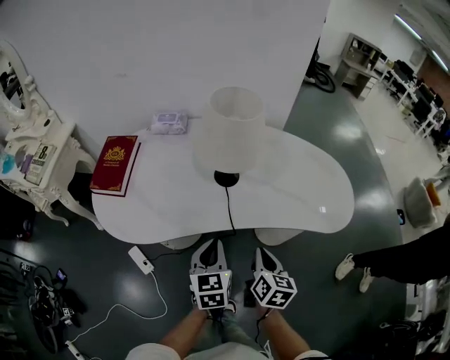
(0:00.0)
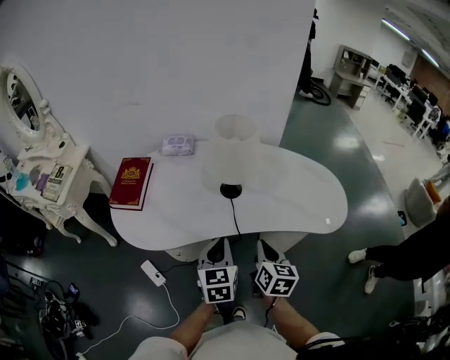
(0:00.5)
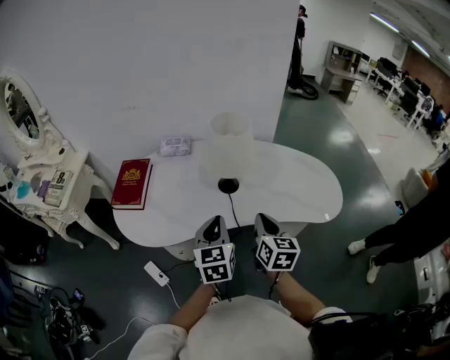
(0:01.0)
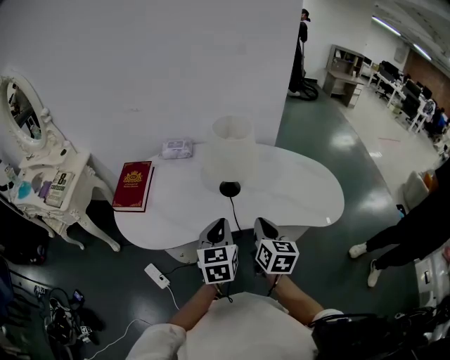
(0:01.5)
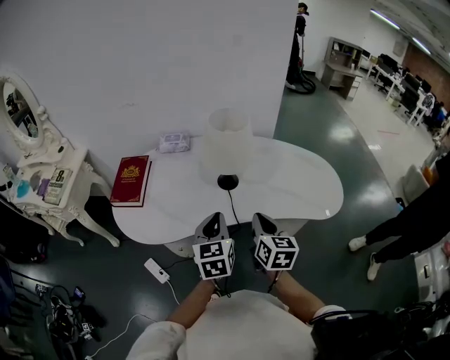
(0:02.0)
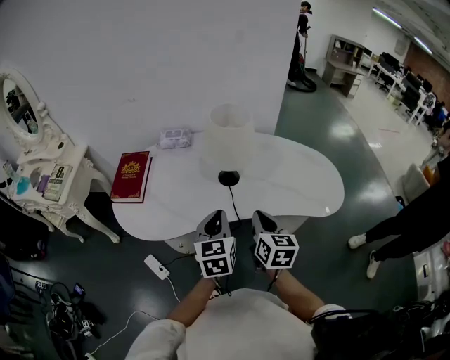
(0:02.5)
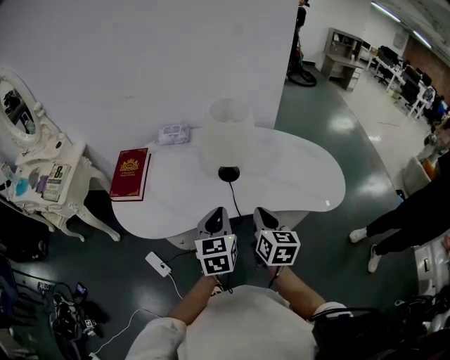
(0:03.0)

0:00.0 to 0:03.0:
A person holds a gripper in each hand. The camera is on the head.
0:00.0 to 0:01.5: Both grippers travel together upward, approximately 15 cm.
0:01.5 to 0:03.0: The two grippers keep their place.

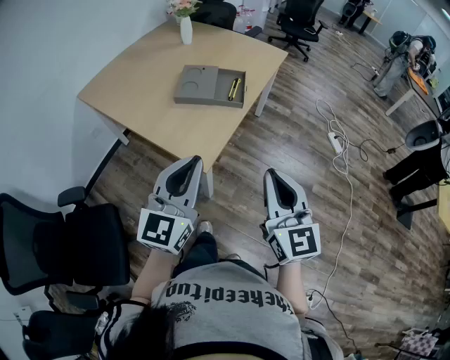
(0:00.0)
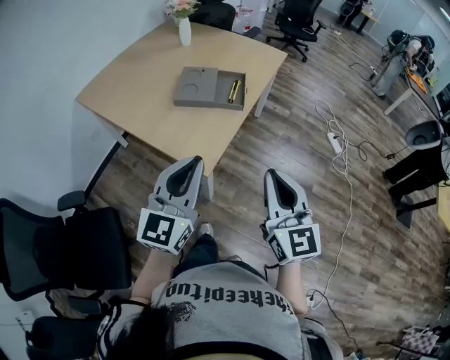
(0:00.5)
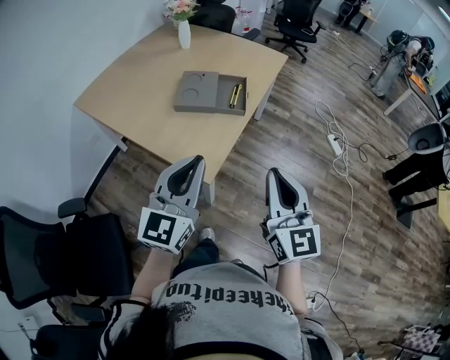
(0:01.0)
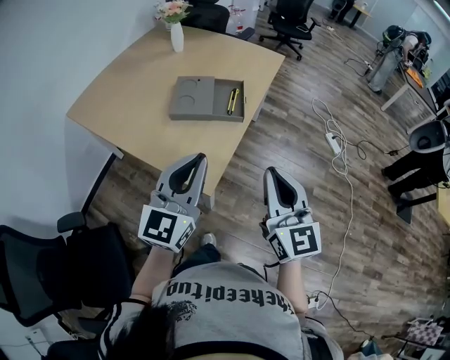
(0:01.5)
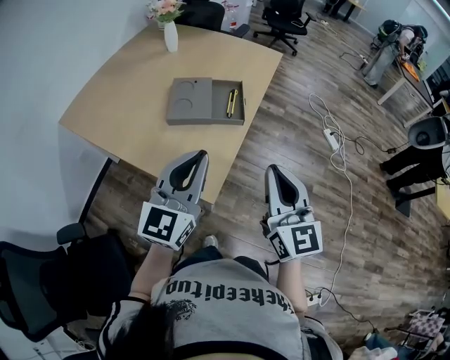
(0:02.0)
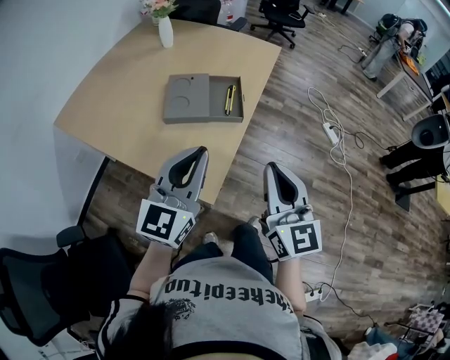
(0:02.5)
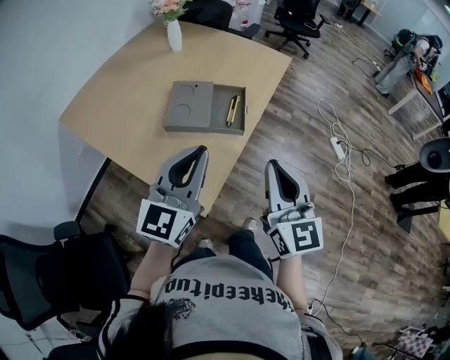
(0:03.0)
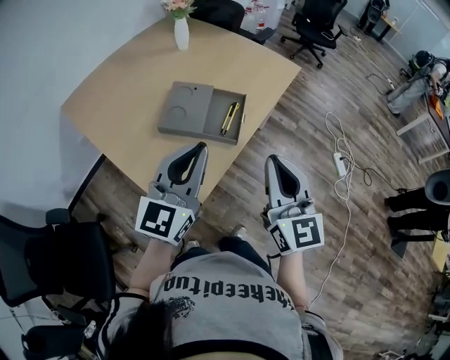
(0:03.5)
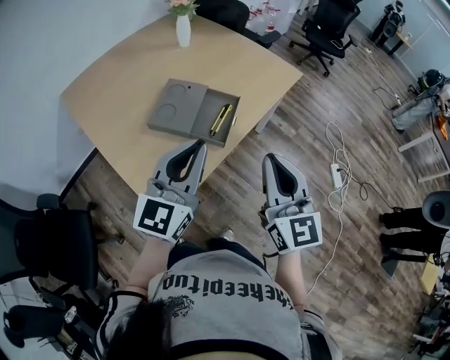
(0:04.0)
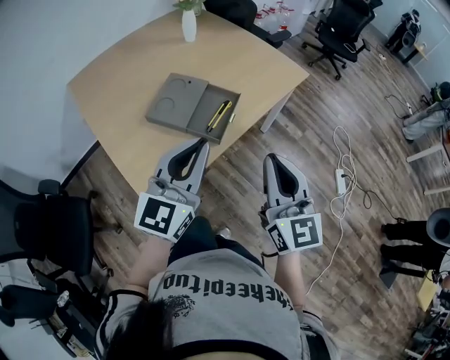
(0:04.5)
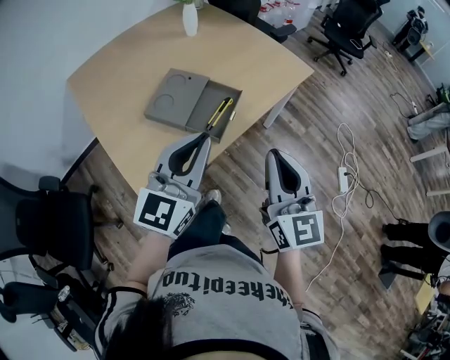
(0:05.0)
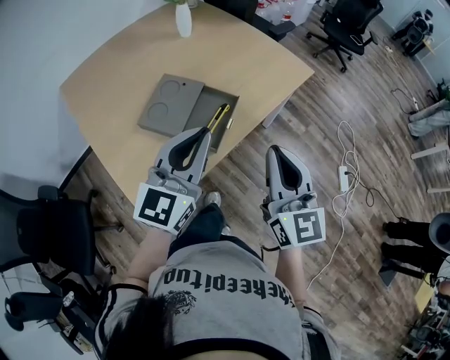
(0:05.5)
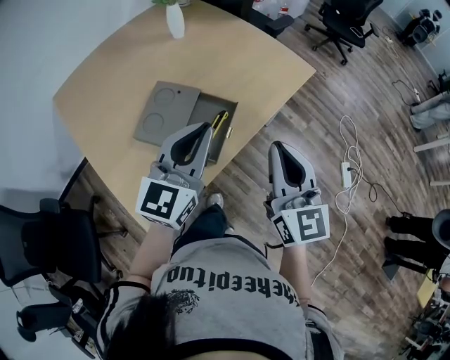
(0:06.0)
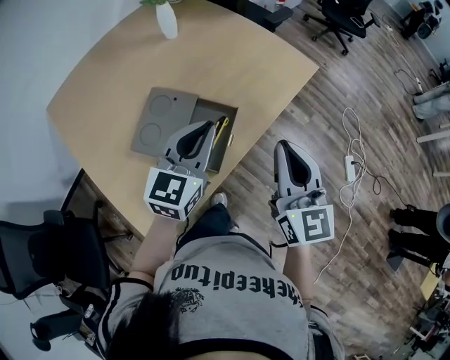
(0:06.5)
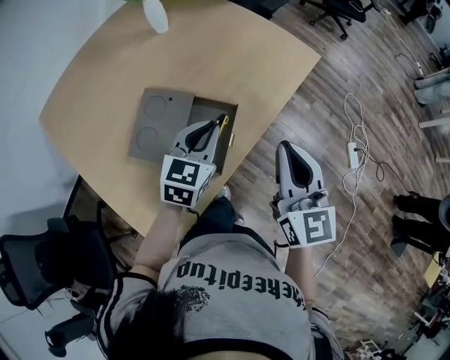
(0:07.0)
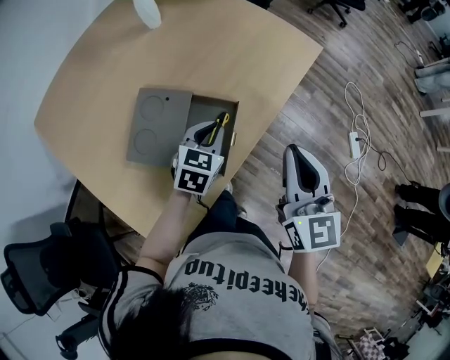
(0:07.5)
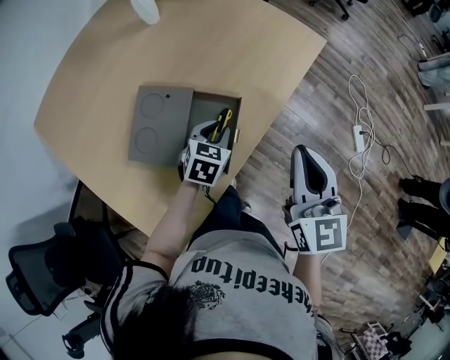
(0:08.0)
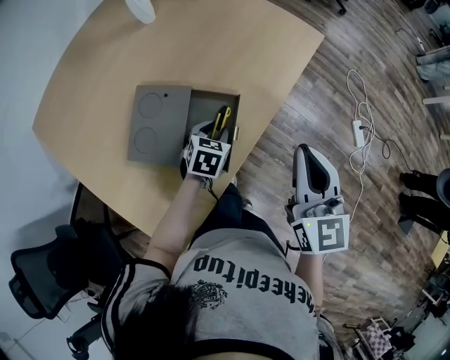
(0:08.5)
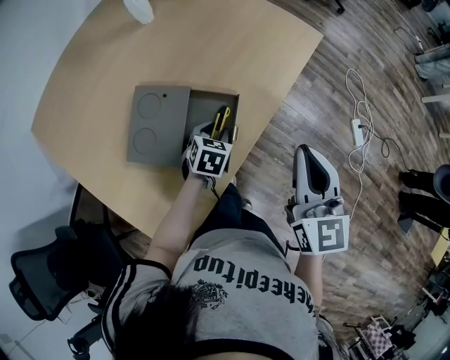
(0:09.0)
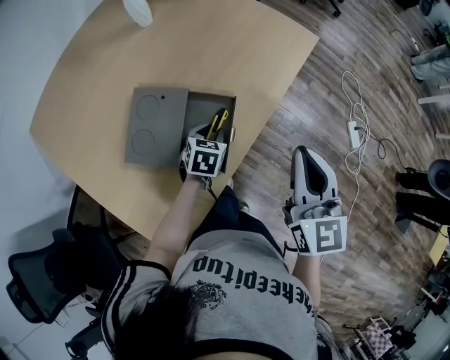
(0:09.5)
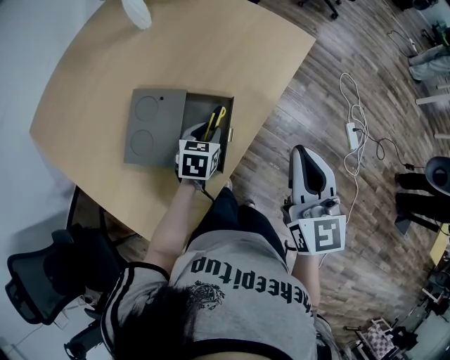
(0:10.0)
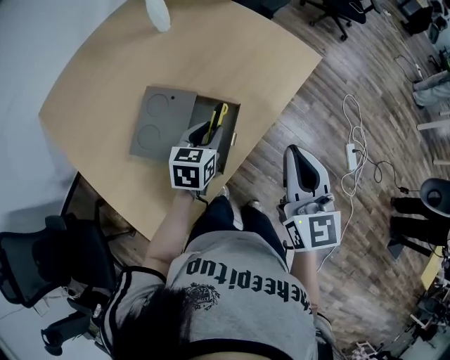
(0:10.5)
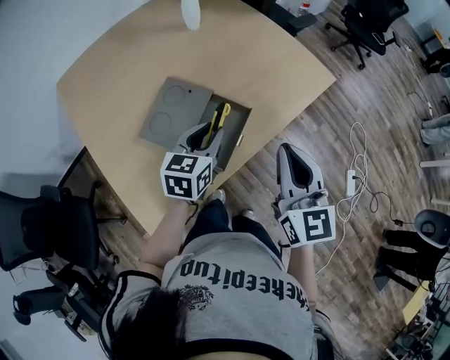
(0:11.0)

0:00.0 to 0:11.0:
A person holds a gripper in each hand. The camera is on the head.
0:00.0 to 0:02.0: The two grippers go about 15 cm forward.
0:02.0 to 0:03.5: The grippers both shift forward and to the right by about 15 cm.
0:03.5 to 0:05.5: Both grippers travel together forward and to the right, some 15 cm.
0:05.5 to 0:07.5: The left gripper heads downward and forward, covering roughly 30 cm, and angles its fingers downward, by approximately 40 degrees. The right gripper shifts roughly 15 cm forward and downward.
0:07.5 to 0:09.0: The left gripper shifts about 10 cm downward, and opens.
0:09.0 to 0:11.0: The left gripper shifts some 20 cm upward, and changes its angle by roughly 40 degrees.

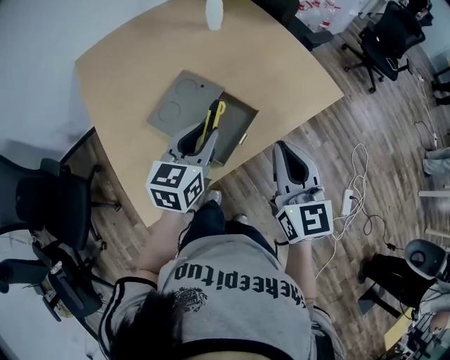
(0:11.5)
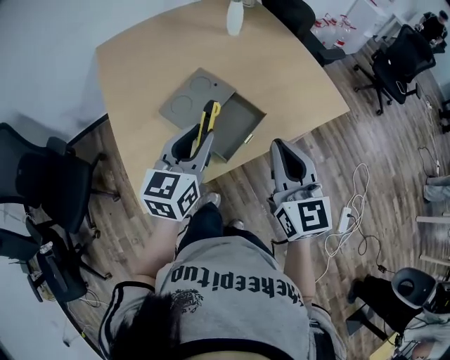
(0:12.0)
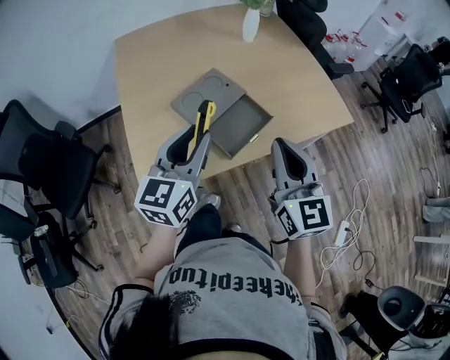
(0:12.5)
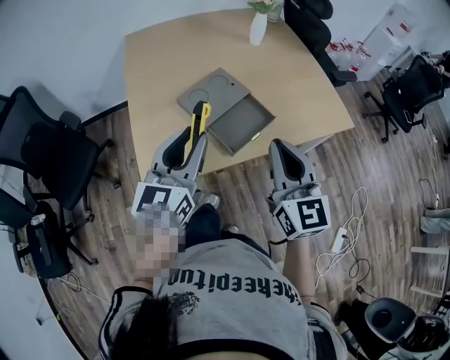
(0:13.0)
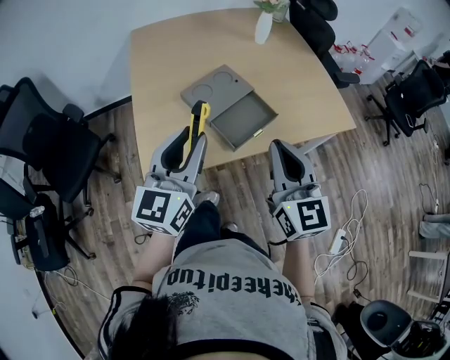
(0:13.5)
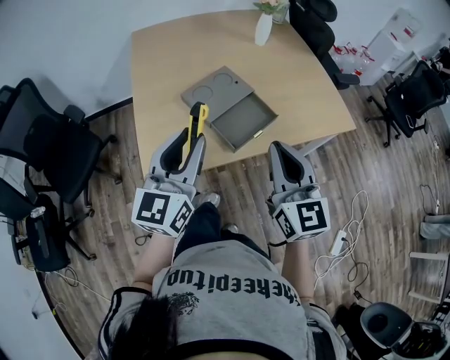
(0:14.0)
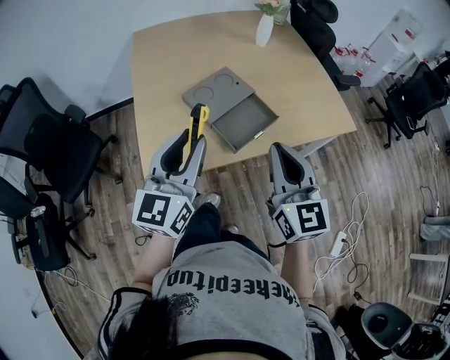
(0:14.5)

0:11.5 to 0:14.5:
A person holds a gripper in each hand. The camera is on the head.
0:11.5 to 0:13.0: The left gripper moves backward, upward and to the left, some 15 cm, and turns by about 30 degrees, while the right gripper shifts some 5 cm backward.
0:13.0 to 0:14.5: The grippers make only small movements.

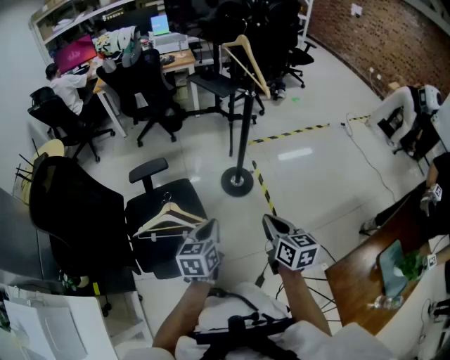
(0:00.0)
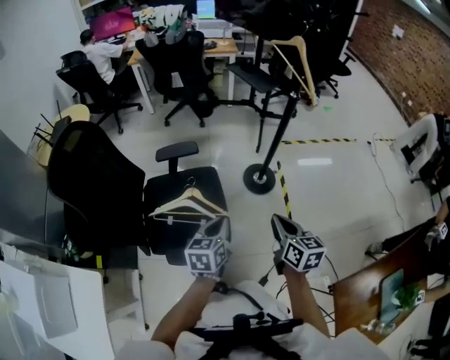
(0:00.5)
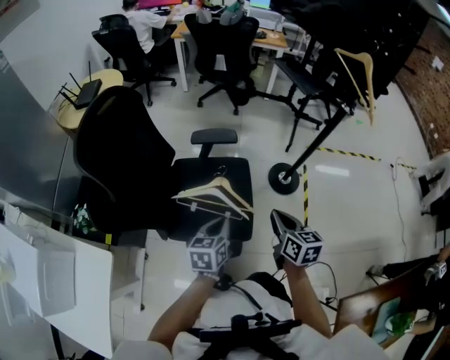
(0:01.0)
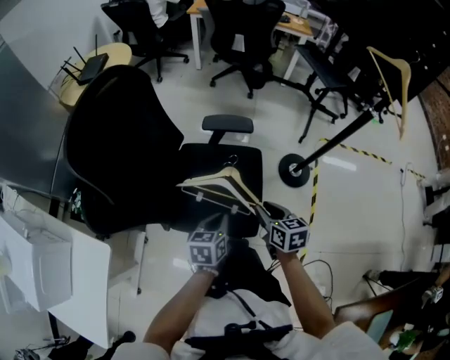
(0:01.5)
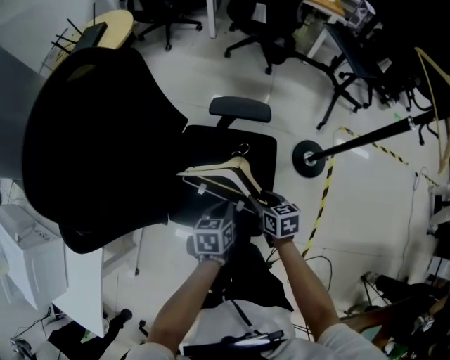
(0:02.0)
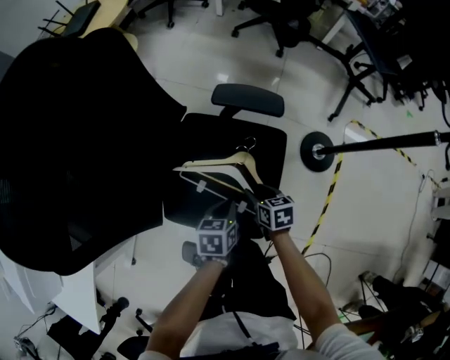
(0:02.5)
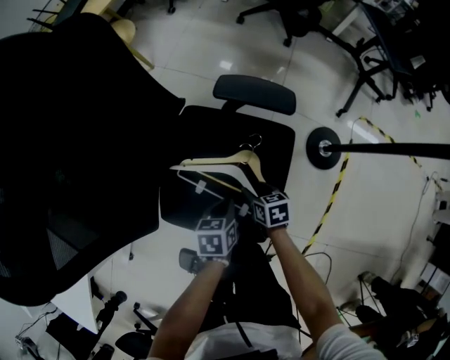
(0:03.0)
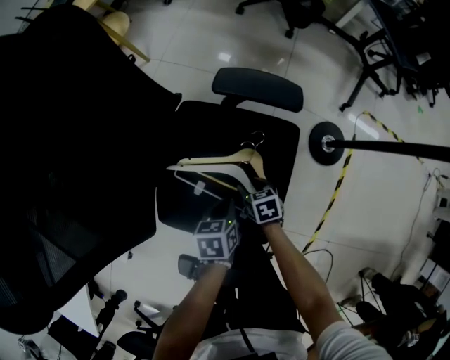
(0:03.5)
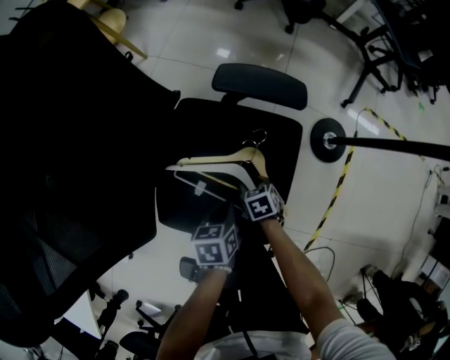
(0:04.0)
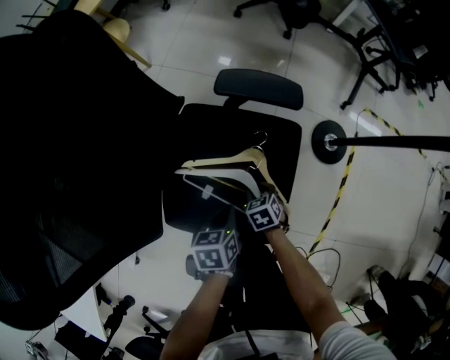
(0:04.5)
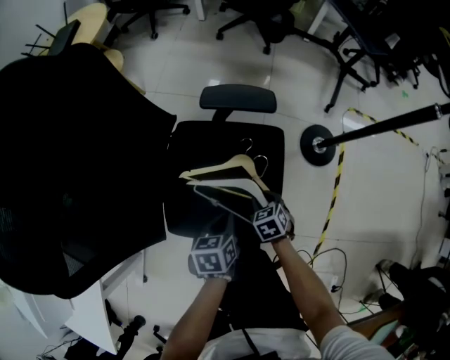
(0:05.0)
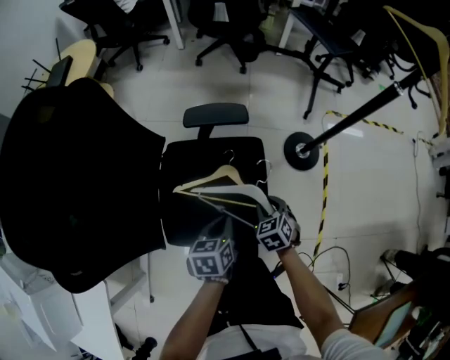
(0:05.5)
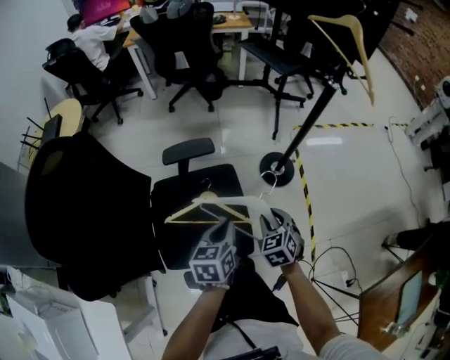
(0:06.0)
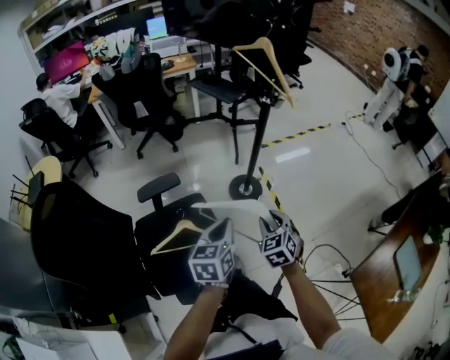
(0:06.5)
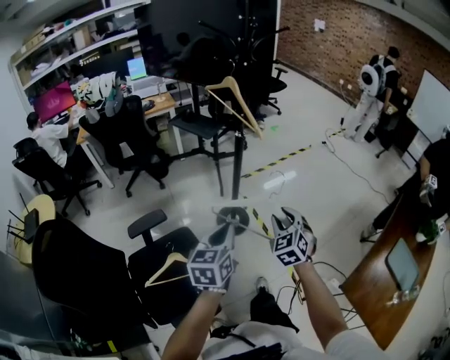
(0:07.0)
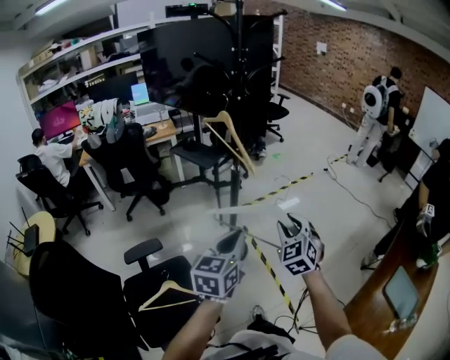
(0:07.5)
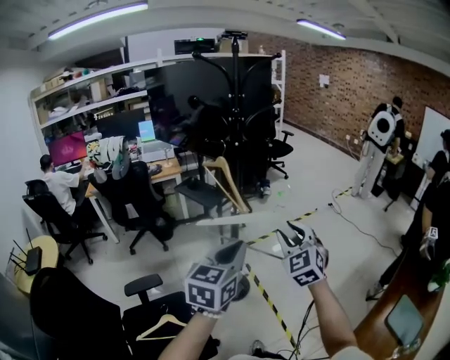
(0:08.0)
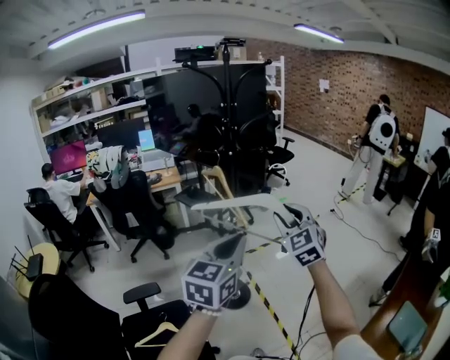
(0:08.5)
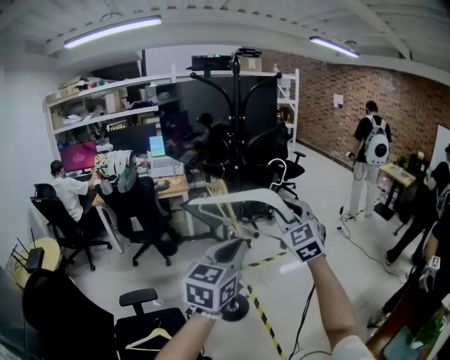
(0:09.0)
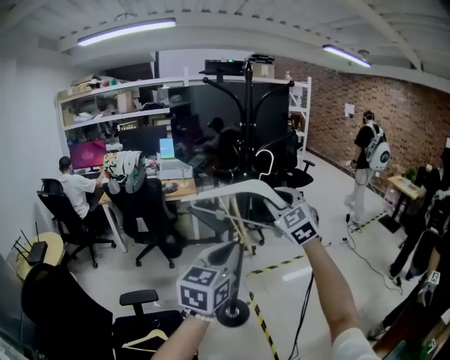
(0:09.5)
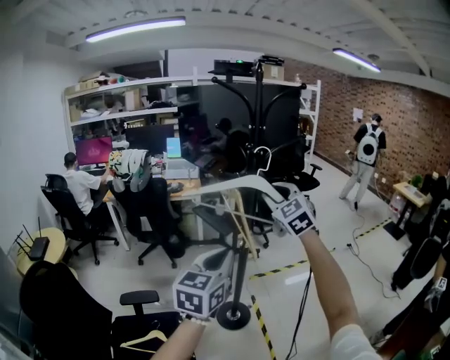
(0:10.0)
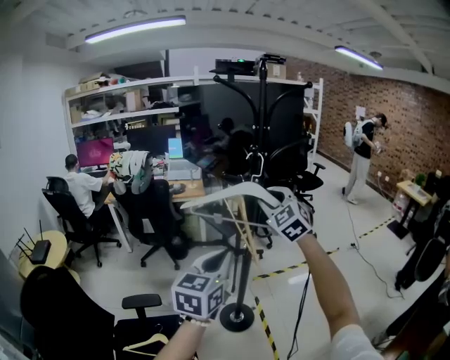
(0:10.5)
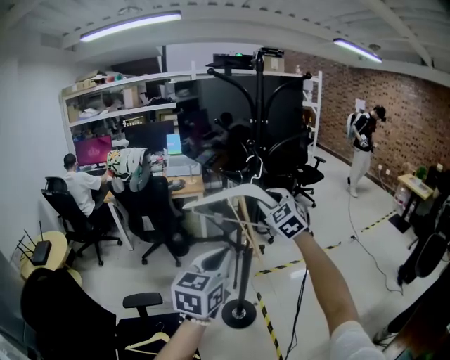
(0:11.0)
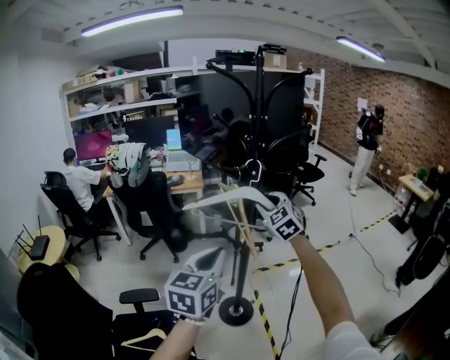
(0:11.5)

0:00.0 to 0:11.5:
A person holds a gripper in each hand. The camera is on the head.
0:00.0 to 0:02.0: The left gripper shifts by roughly 35 cm, and rotates about 30 degrees, while the right gripper ends up roughly 50 cm from where it was, swivels about 50 degrees, and opens.
0:02.0 to 0:04.0: The right gripper moves downward, approximately 25 cm, and turns by roughly 30 degrees, while the left gripper travels downward by roughly 15 cm.
0:04.0 to 0:06.0: Both grippers travel together upward, approximately 30 cm. The left gripper changes its angle by roughly 40 degrees; the right gripper rotates approximately 40 degrees.
0:06.0 to 0:07.5: The grippers both shift upward, to the right and forward by some 40 cm. The left gripper rotates about 40 degrees. Meanwhile the right gripper changes its angle by about 30 degrees.
0:07.5 to 0:09.5: The left gripper goes roughly 20 cm upward and forward. Meanwhile the right gripper is displaced upward and forward by about 30 cm, and rotates approximately 30 degrees.
0:09.5 to 0:11.5: The left gripper travels forward by about 5 cm; the right gripper travels forward and downward by about 15 cm.
